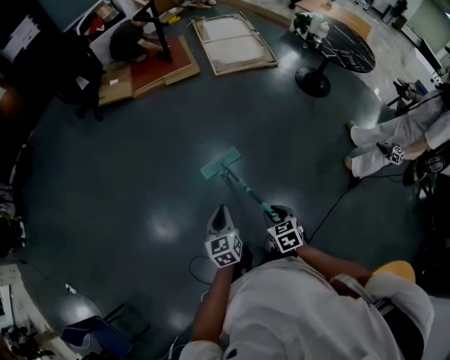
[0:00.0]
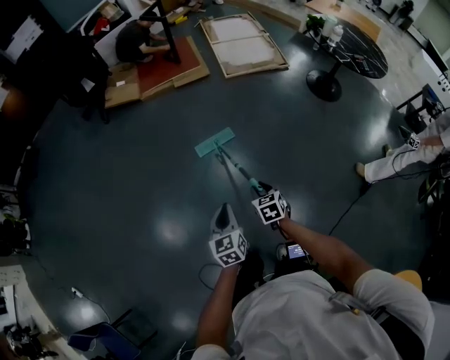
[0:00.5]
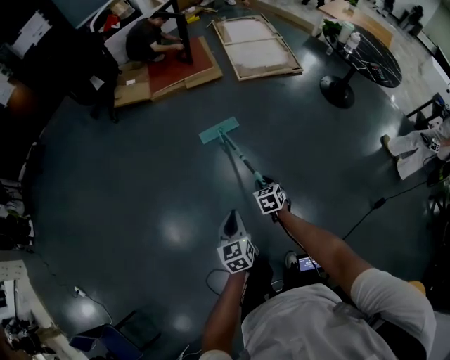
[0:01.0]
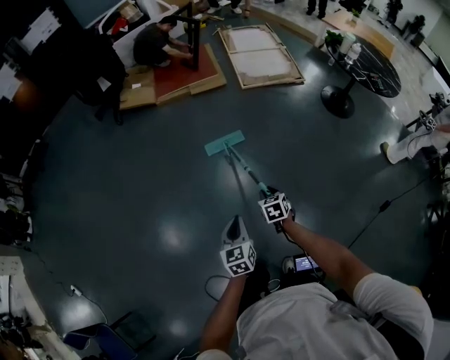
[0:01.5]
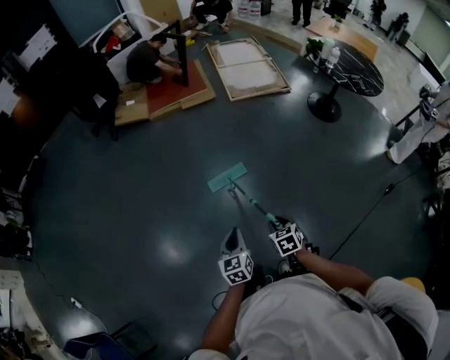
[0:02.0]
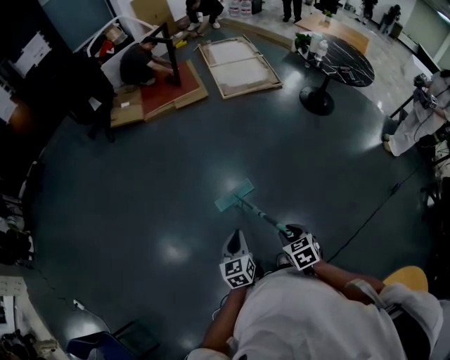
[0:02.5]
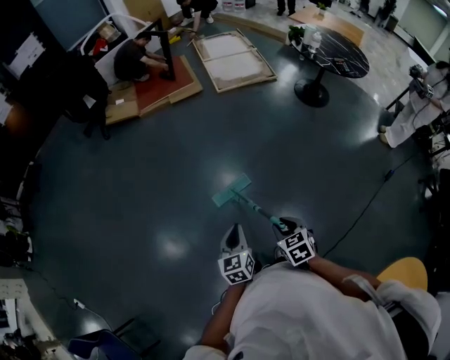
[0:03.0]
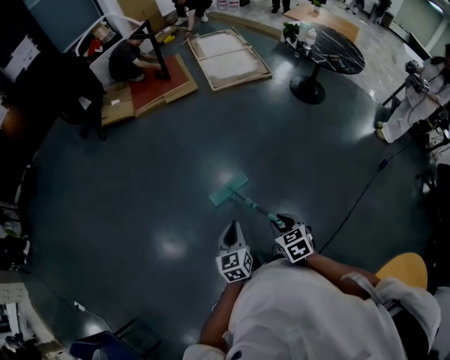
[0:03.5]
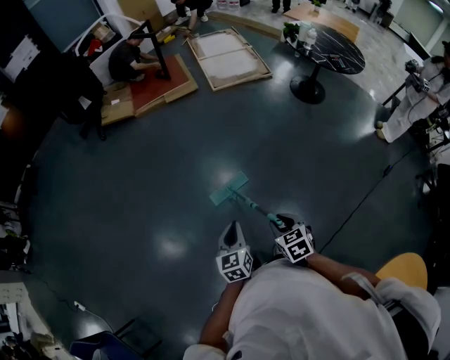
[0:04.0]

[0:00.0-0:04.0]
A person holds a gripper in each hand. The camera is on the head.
0:00.0 to 0:02.0: The right gripper goes forward and returns, roughly 25 cm each way; the left gripper moves about 10 cm forward and comes back.
0:02.0 to 0:04.0: The right gripper is displaced backward and upward by approximately 10 cm. Meanwhile the left gripper moves backward, roughly 5 cm.

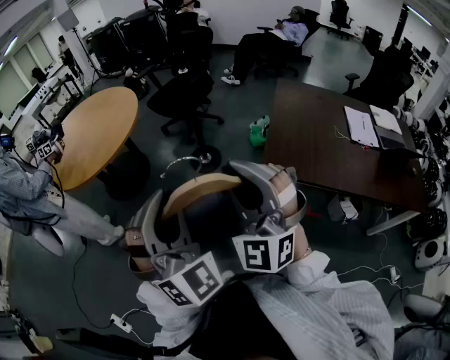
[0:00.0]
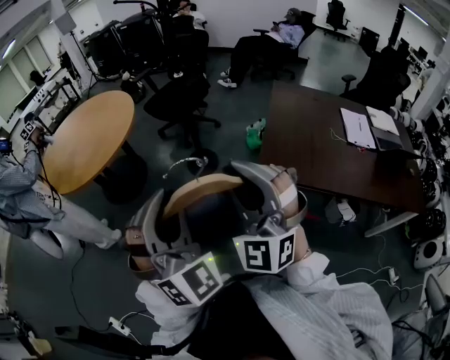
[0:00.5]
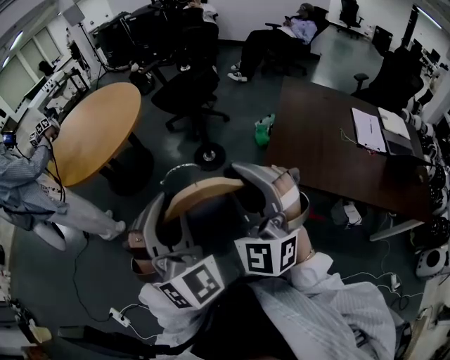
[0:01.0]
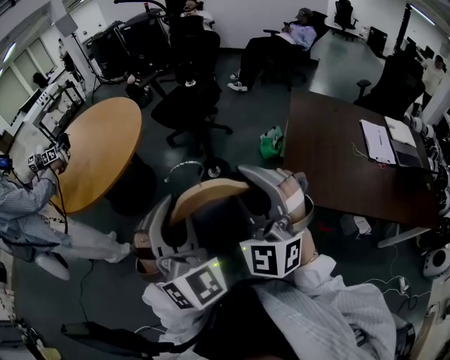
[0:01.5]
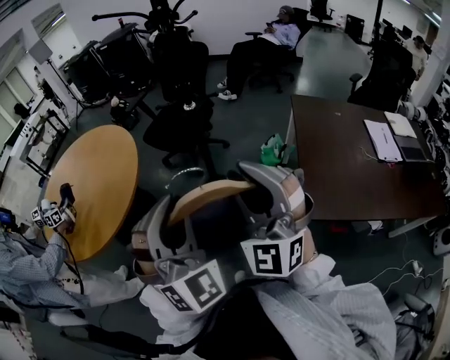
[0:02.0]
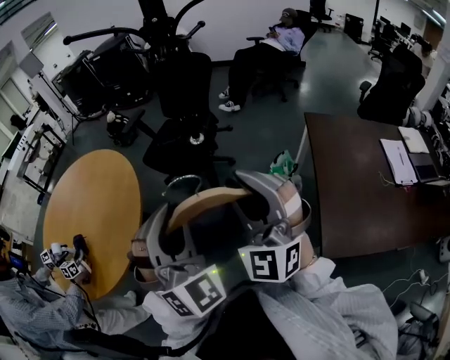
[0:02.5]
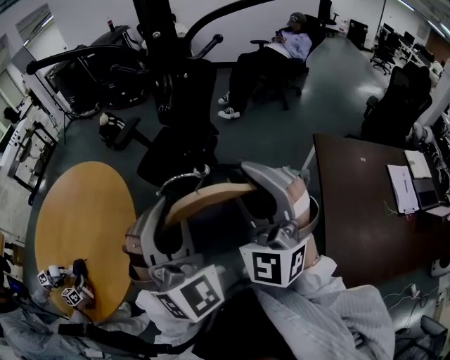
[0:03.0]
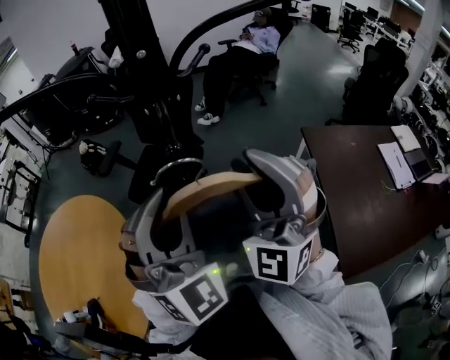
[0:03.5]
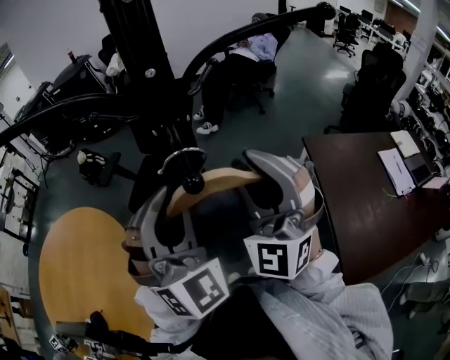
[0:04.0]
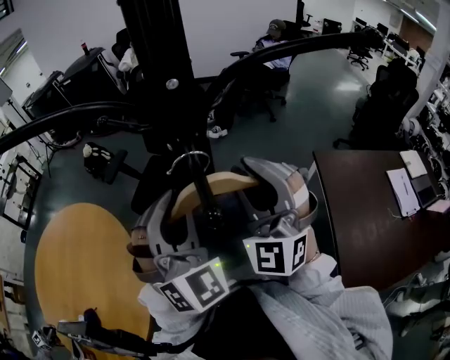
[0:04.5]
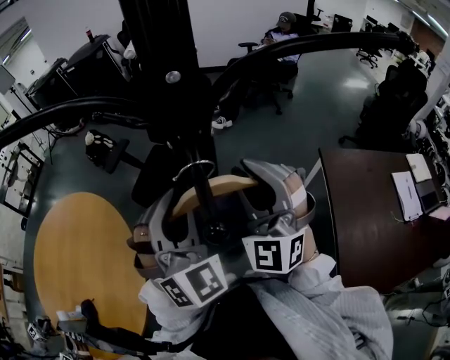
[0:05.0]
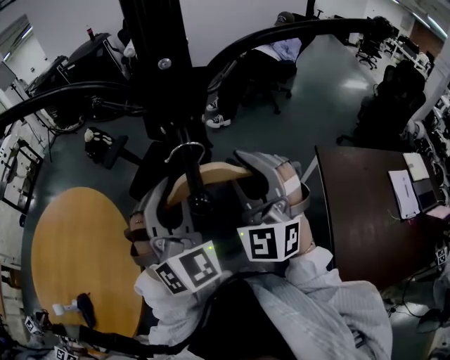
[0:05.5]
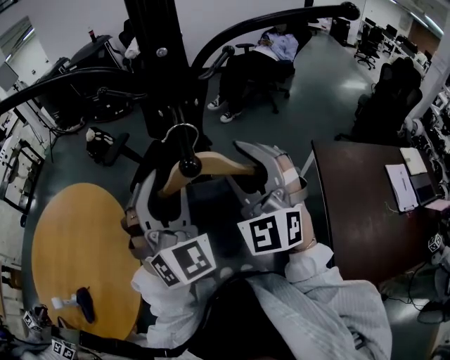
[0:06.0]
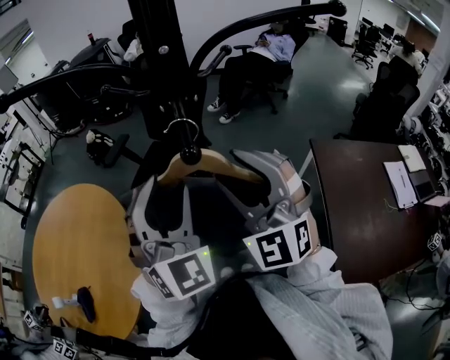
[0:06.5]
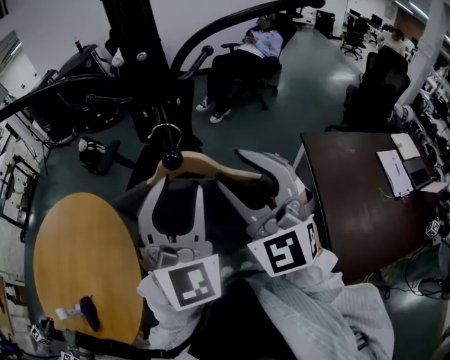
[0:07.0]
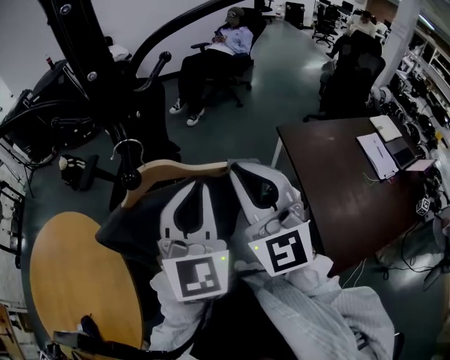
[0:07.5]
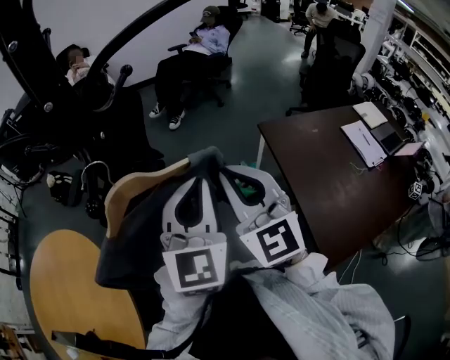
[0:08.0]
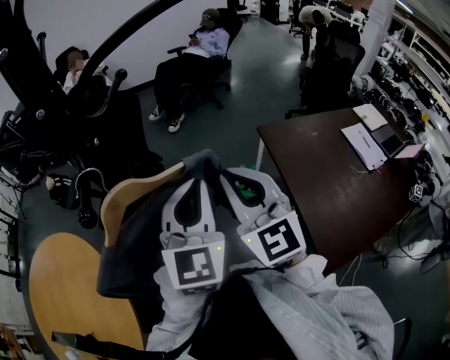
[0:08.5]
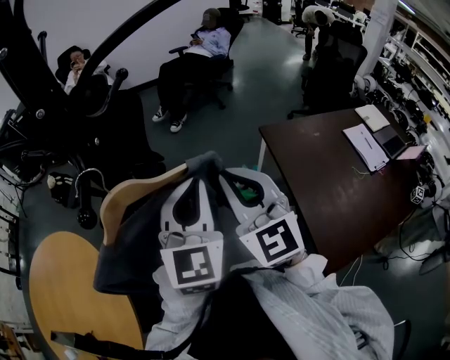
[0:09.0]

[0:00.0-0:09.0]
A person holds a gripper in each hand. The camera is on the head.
0:00.0 to 0:02.0: Both grippers move forward, about 35 cm.
0:02.0 to 0:04.5: The pair of grippers is taken forward, roughly 60 cm.
0:04.5 to 0:07.0: Both grippers travel together backward, approximately 10 cm. The left gripper turns by some 20 degrees, and opens up. The right gripper opens.
0:07.0 to 0:09.0: The right gripper goes some 15 cm to the right and downward, swivels some 30 degrees, and closes its fingers. The left gripper shifts roughly 15 cm to the right, downward and forward, turns by some 30 degrees, and closes up.

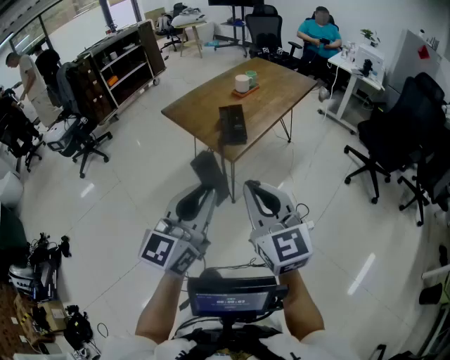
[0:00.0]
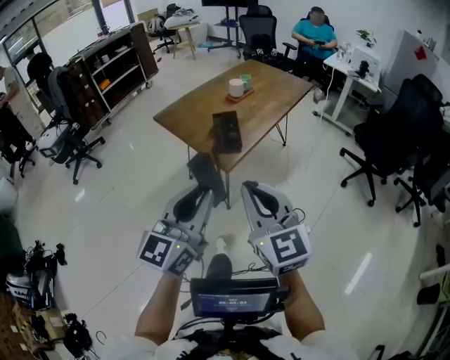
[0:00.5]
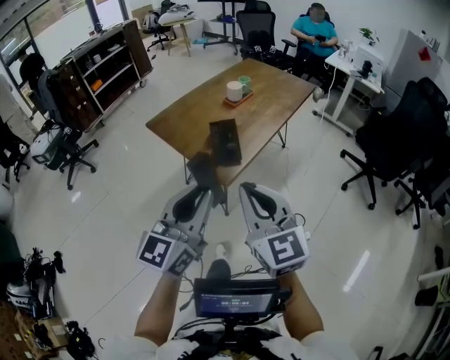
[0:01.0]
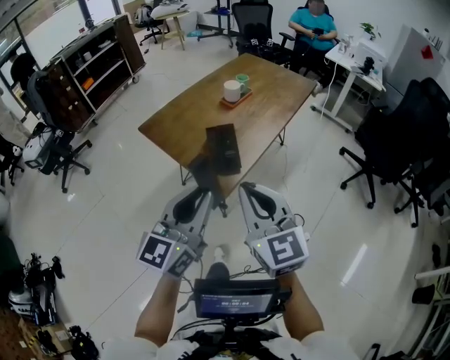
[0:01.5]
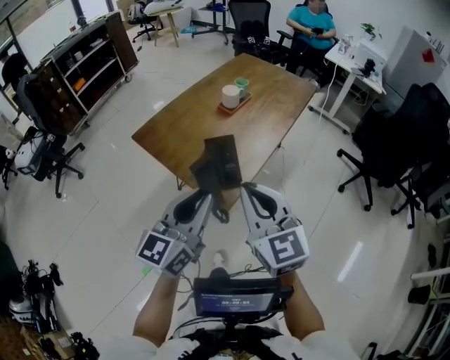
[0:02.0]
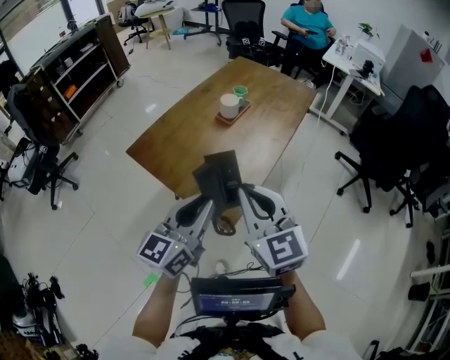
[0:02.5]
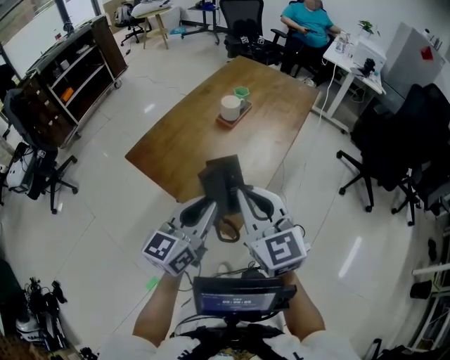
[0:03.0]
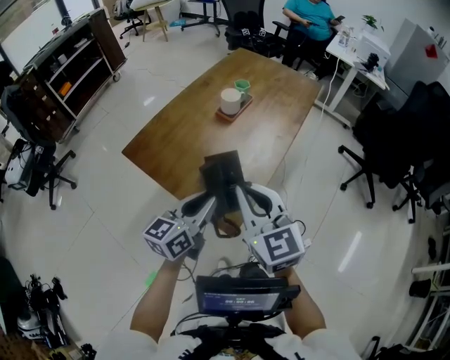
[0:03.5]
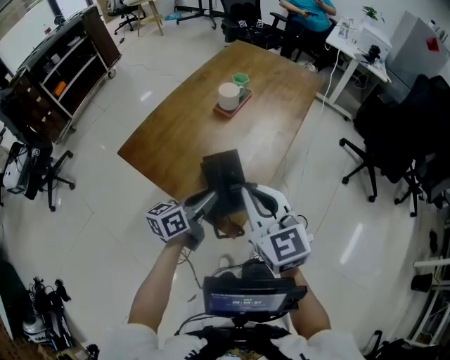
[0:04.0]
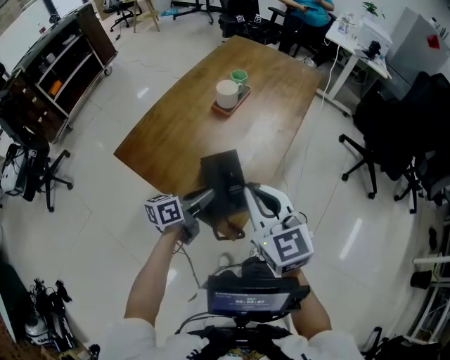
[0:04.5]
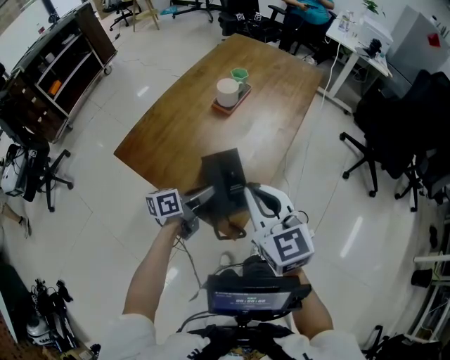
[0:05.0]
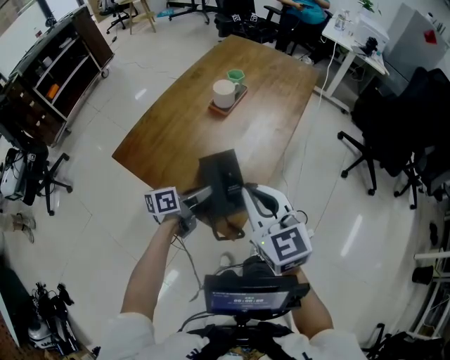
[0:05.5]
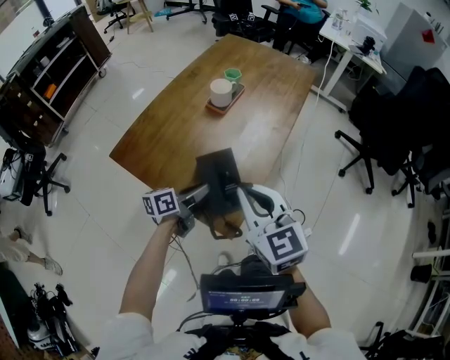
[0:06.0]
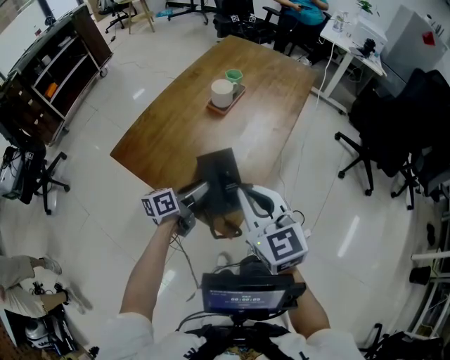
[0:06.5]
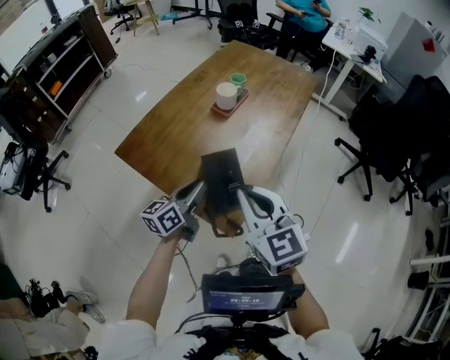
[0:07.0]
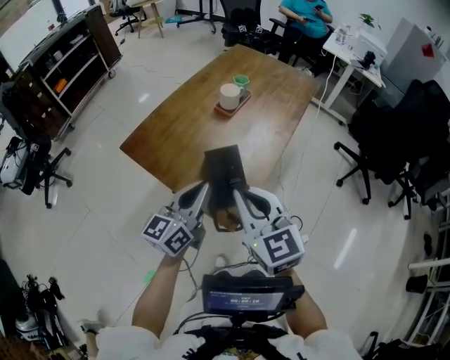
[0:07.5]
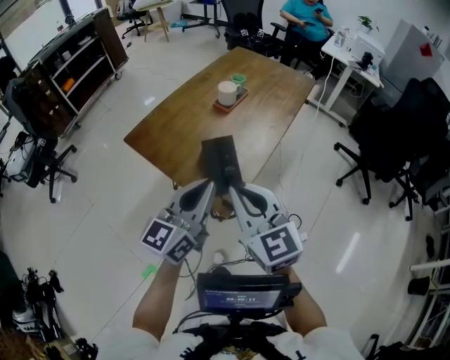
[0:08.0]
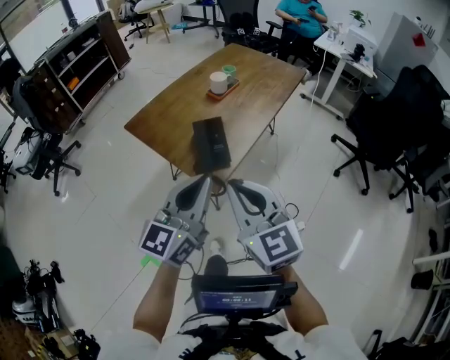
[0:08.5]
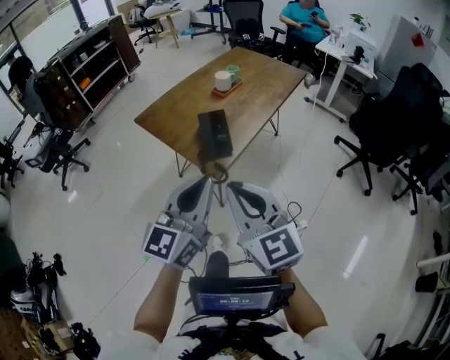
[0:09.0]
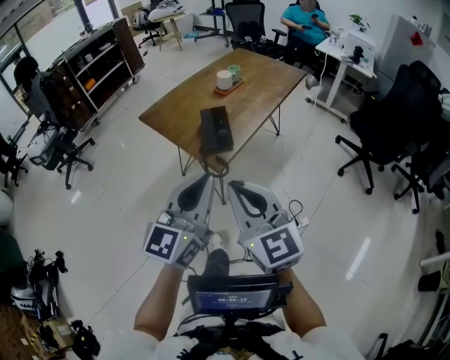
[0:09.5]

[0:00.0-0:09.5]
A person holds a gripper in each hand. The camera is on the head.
0:00.0 to 0:02.0: Both grippers move forward, about 30 cm.
0:02.0 to 0:04.0: The left gripper is displaced forward and downward by about 25 cm, and changes its angle by roughly 40 degrees. Meanwhile the right gripper shifts about 15 cm forward and downward.
0:04.0 to 0:05.5: The left gripper shifts about 5 cm downward.
0:05.5 to 0:07.5: The right gripper moves backward, some 5 cm, while the left gripper shifts approximately 20 cm upward and backward, swivels some 40 degrees, and opens and closes again.
0:07.5 to 0:09.5: Both grippers move backward, approximately 30 cm. The left gripper rotates about 20 degrees.

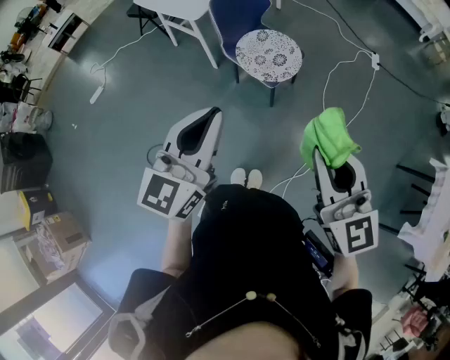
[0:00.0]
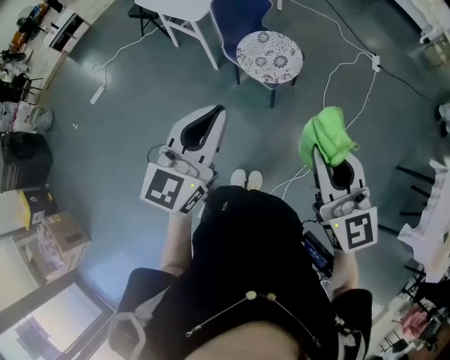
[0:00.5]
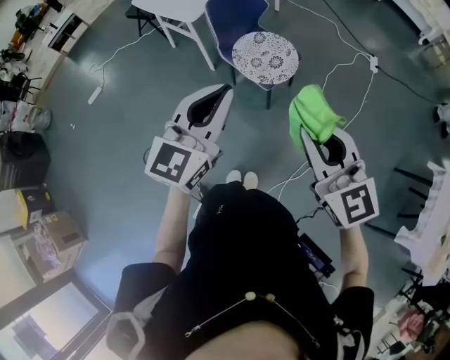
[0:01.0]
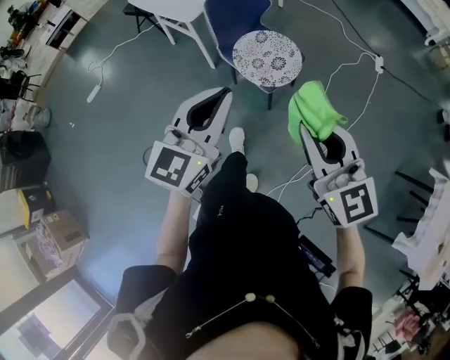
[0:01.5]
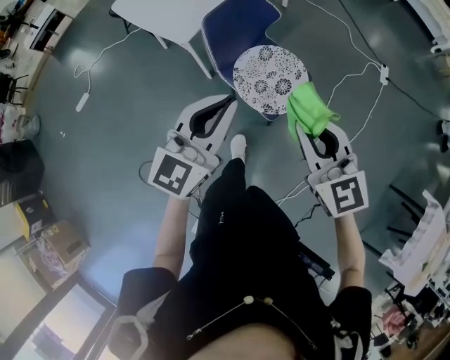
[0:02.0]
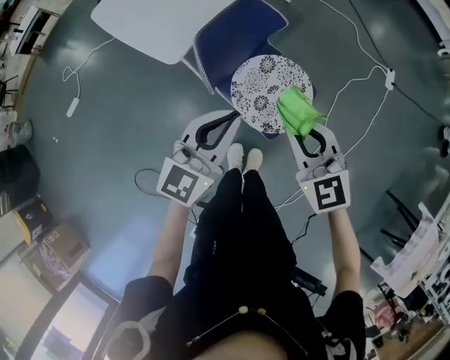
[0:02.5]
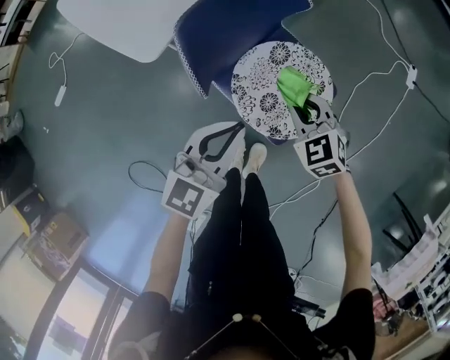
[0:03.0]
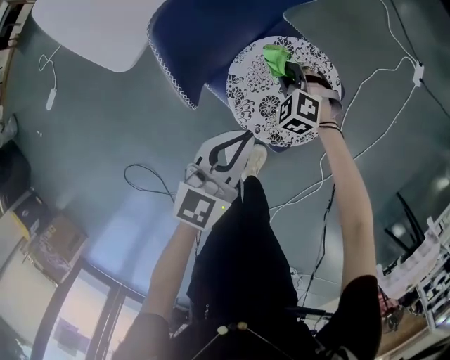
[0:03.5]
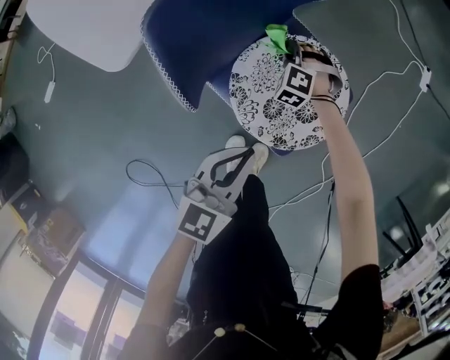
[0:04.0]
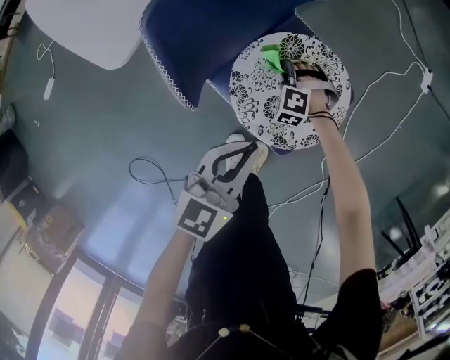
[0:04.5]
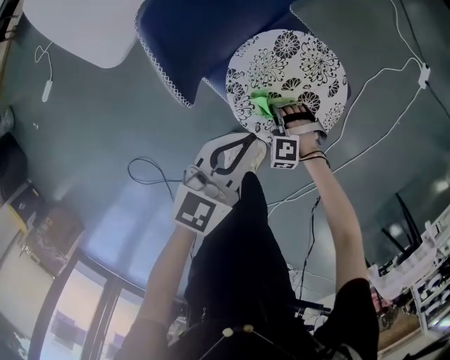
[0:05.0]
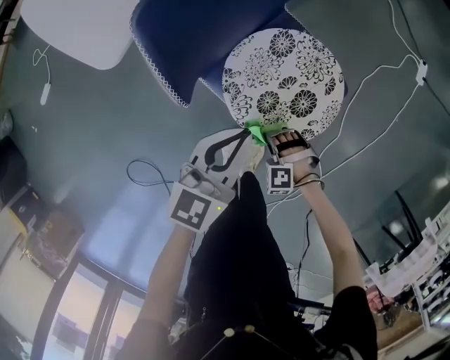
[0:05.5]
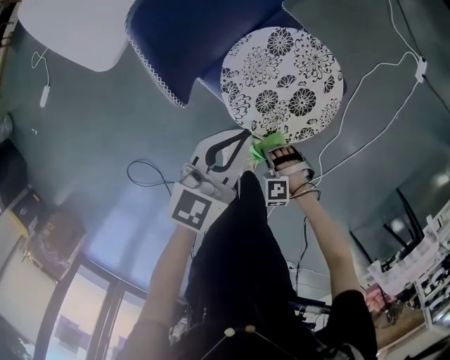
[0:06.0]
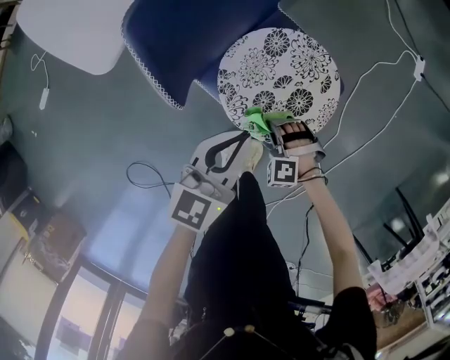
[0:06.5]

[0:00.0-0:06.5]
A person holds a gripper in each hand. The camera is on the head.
0:00.0 to 0:02.0: The two grippers go some 35 cm forward.
0:02.0 to 0:04.5: The right gripper moves downward and forward, roughly 70 cm, and tips its fingers downward by approximately 50 degrees; the left gripper is displaced downward and forward by roughly 40 cm, and swivels some 30 degrees.
